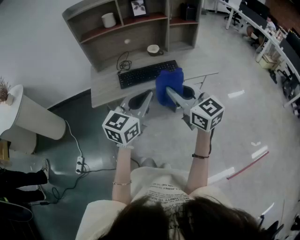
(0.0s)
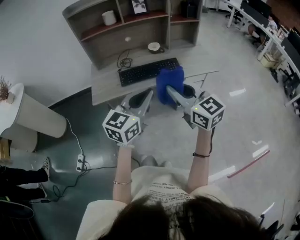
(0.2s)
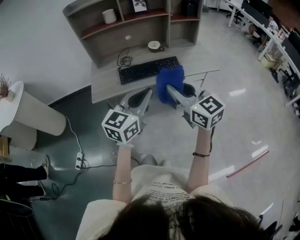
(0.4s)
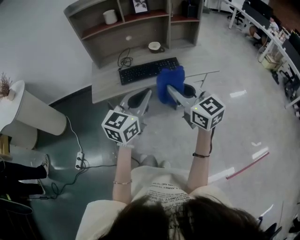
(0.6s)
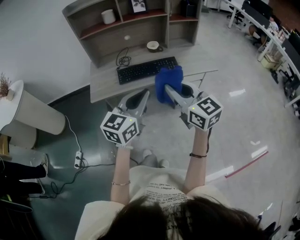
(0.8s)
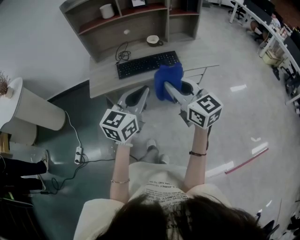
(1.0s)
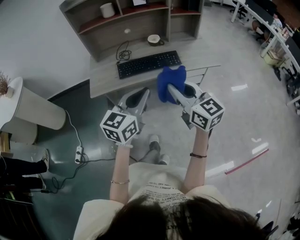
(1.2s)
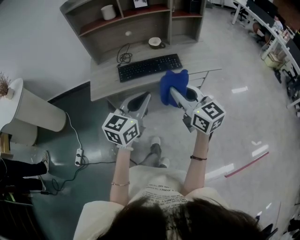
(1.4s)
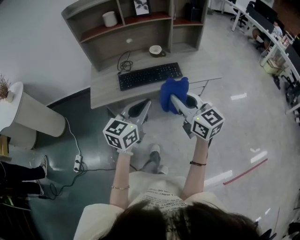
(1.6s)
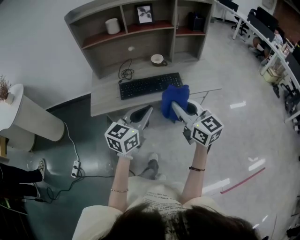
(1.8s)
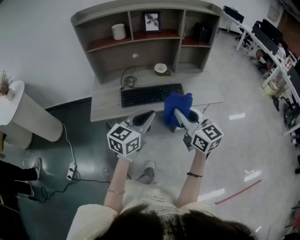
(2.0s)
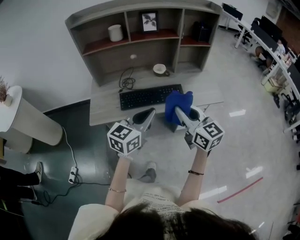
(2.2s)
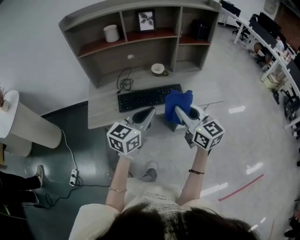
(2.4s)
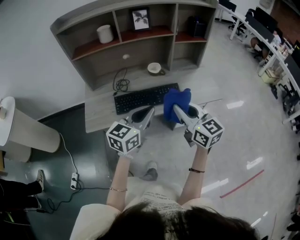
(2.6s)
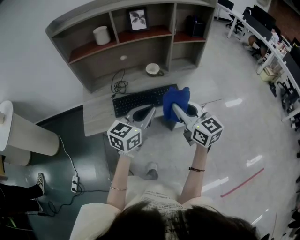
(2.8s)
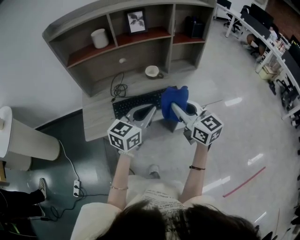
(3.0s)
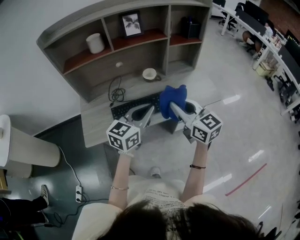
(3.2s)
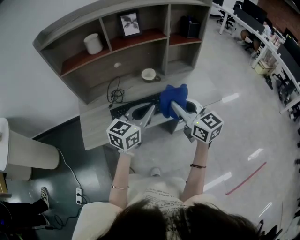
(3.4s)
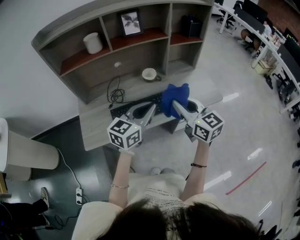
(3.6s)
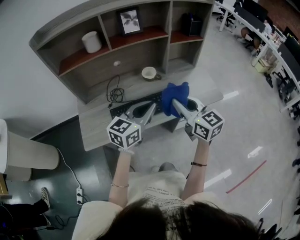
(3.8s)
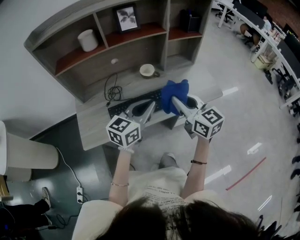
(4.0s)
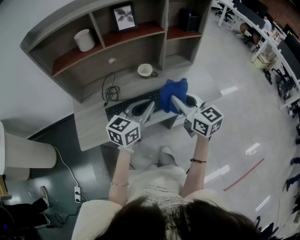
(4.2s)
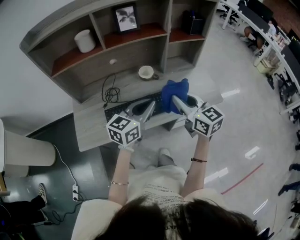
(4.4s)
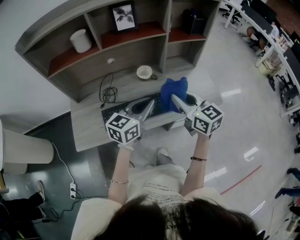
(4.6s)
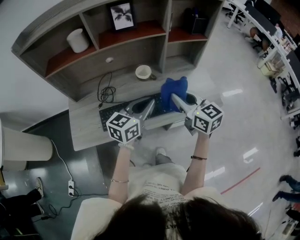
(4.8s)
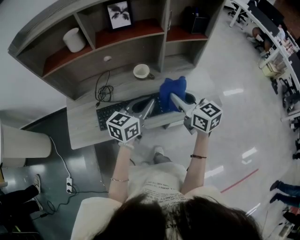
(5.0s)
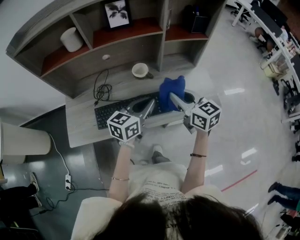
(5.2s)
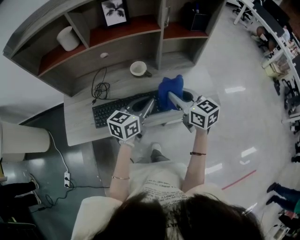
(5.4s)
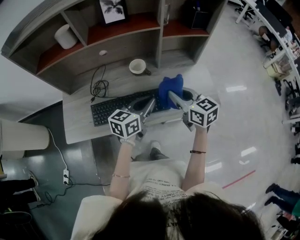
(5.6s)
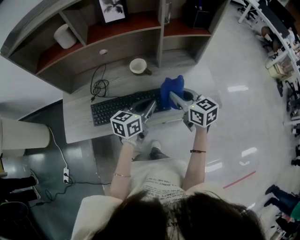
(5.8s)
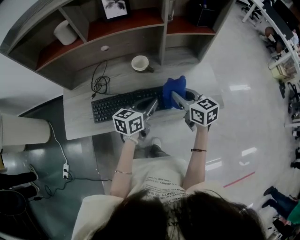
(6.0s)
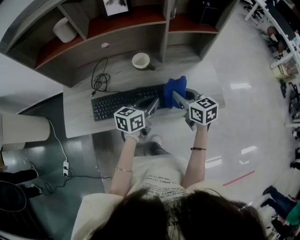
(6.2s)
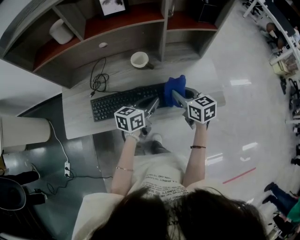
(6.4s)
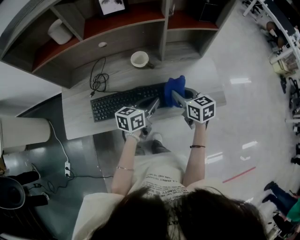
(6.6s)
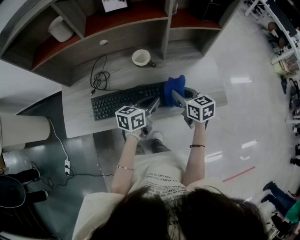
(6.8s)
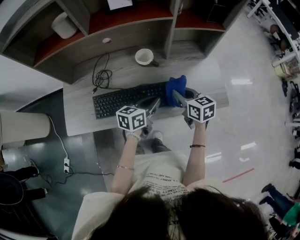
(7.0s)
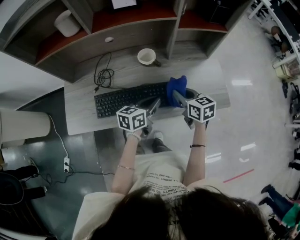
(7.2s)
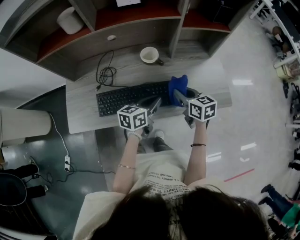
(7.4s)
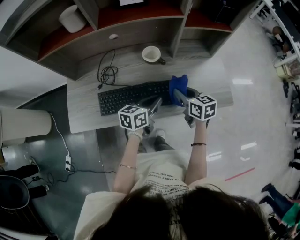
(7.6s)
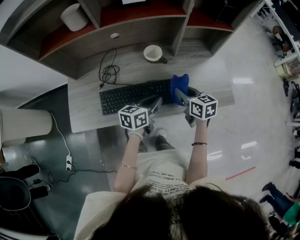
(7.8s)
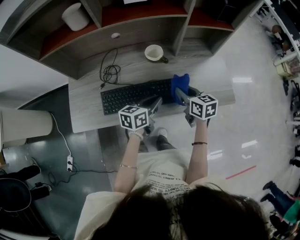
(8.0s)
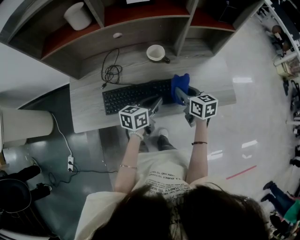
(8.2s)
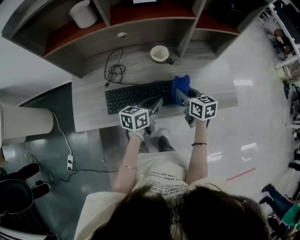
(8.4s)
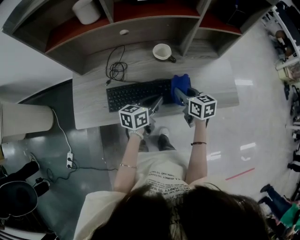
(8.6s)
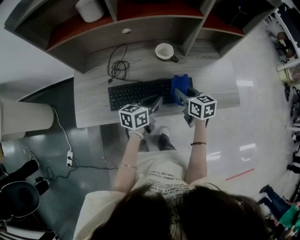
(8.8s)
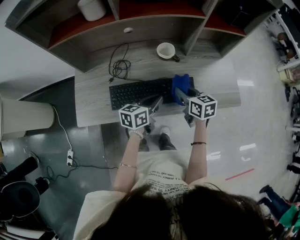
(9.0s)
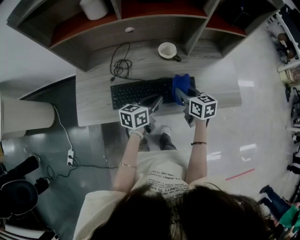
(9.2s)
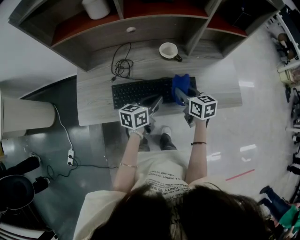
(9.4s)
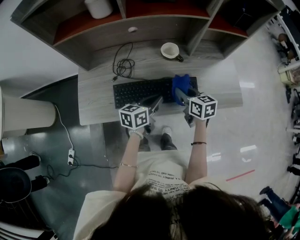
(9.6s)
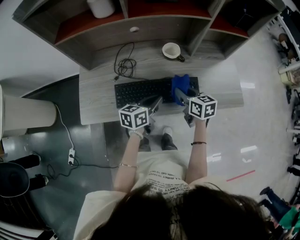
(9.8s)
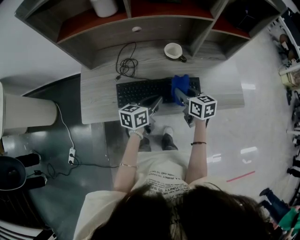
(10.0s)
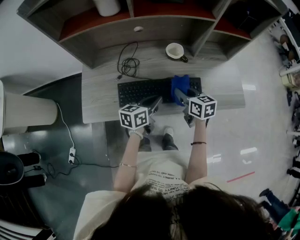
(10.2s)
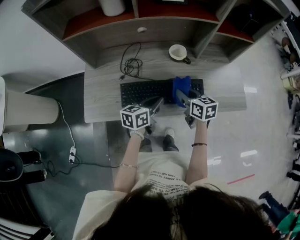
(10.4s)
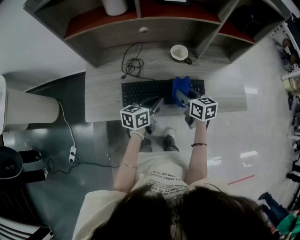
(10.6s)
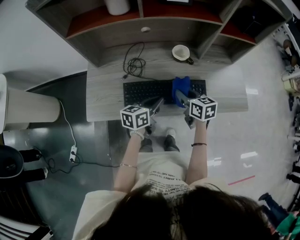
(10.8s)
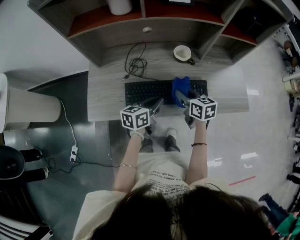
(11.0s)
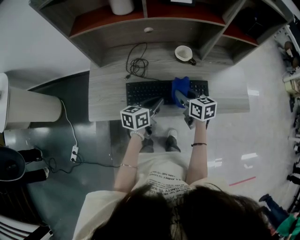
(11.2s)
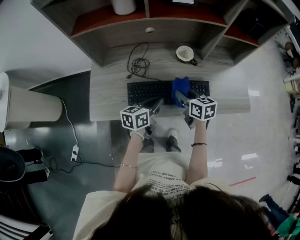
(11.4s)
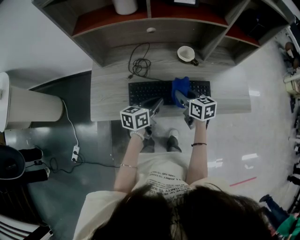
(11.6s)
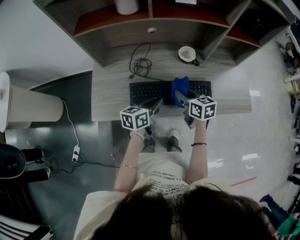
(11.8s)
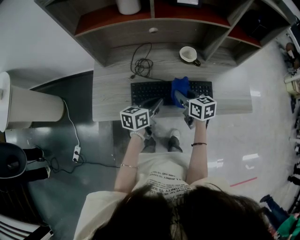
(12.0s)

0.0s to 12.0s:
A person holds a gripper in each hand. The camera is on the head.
0.0s to 1.6s: The right gripper ends up about 5 cm from where it was.
1.6s to 3.0s: The grippers both shift forward by approximately 20 cm.
3.0s to 4.4s: Both grippers move forward, about 10 cm.
4.4s to 6.0s: The left gripper shifts some 15 cm downward, to the right and forward, and rotates some 20 degrees. The right gripper heads downward, forward and to the right, covering roughly 15 cm.
6.0s to 7.6s: Both grippers travel together downward, about 5 cm.
7.6s to 9.0s: Both grippers move to the left, about 5 cm.
9.0s to 10.4s: The grippers make only small movements.
10.4s to 12.0s: Both grippers move to the left, roughly 5 cm.

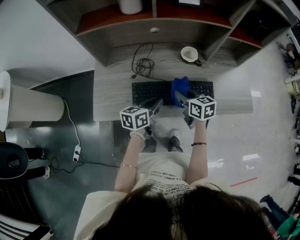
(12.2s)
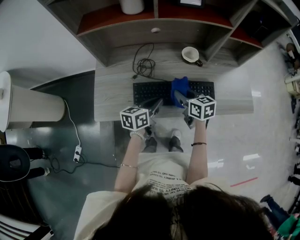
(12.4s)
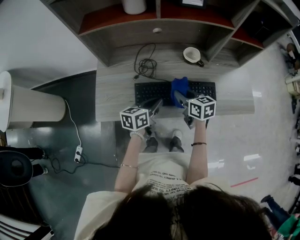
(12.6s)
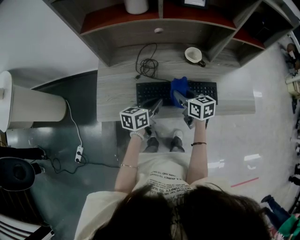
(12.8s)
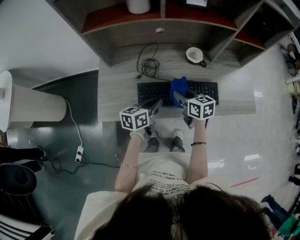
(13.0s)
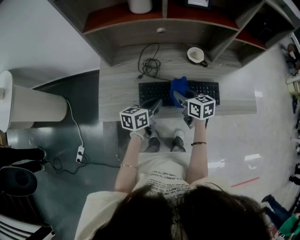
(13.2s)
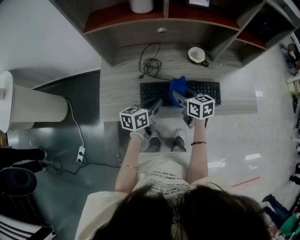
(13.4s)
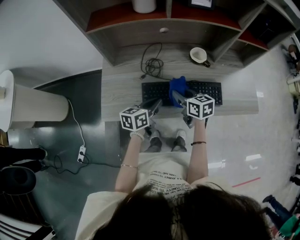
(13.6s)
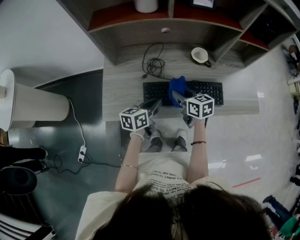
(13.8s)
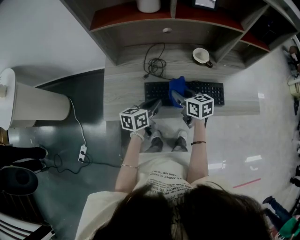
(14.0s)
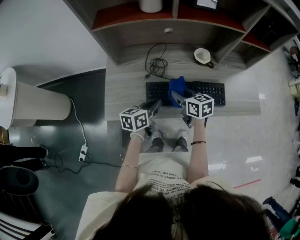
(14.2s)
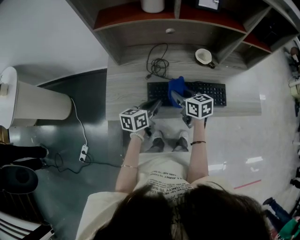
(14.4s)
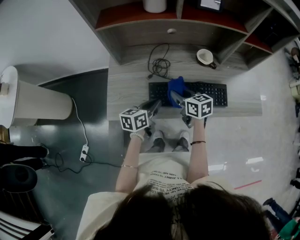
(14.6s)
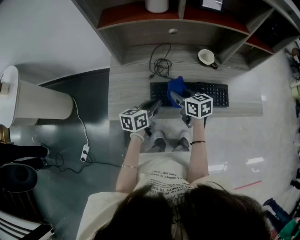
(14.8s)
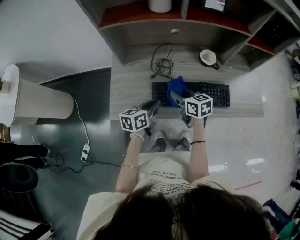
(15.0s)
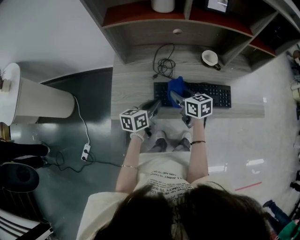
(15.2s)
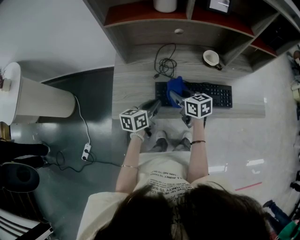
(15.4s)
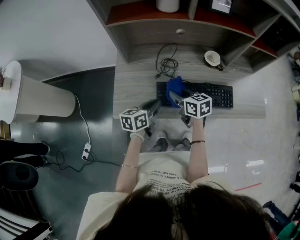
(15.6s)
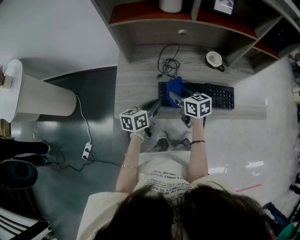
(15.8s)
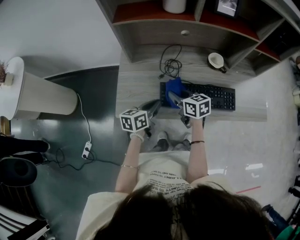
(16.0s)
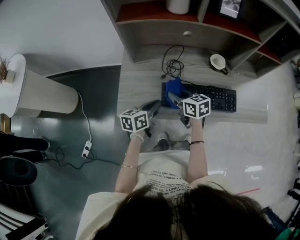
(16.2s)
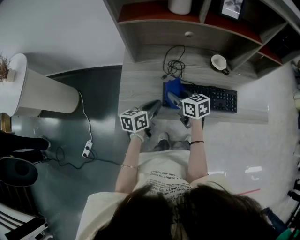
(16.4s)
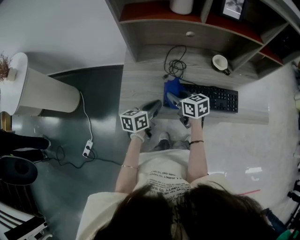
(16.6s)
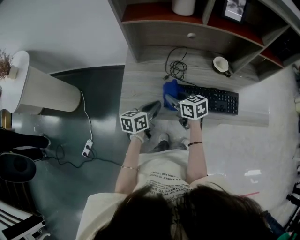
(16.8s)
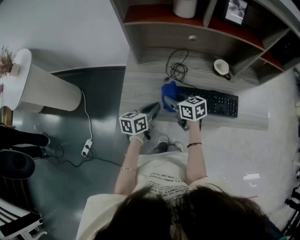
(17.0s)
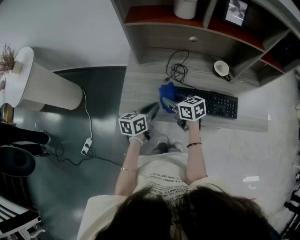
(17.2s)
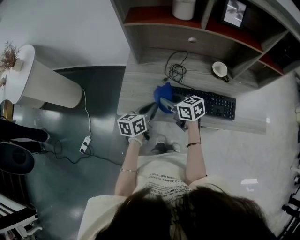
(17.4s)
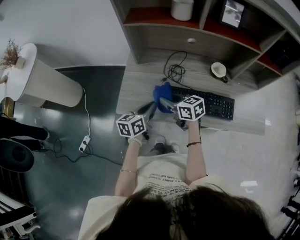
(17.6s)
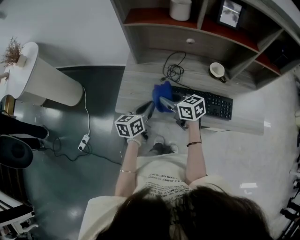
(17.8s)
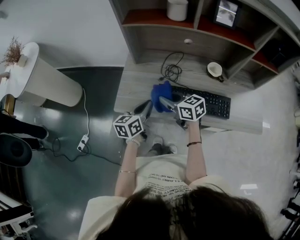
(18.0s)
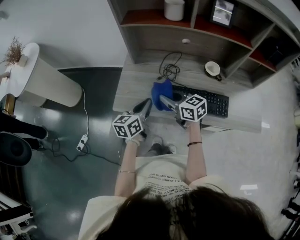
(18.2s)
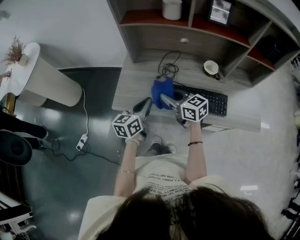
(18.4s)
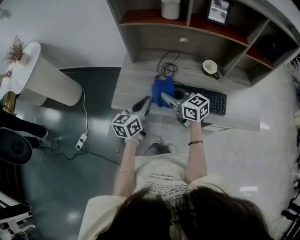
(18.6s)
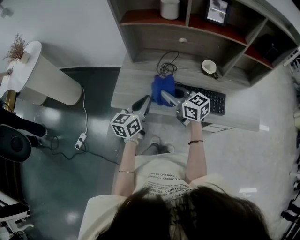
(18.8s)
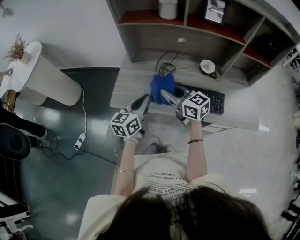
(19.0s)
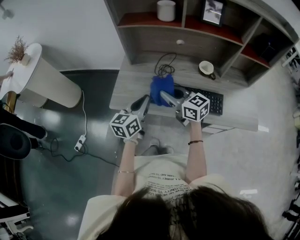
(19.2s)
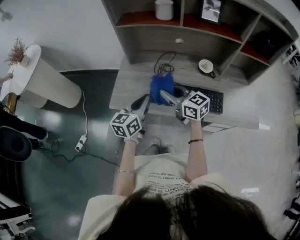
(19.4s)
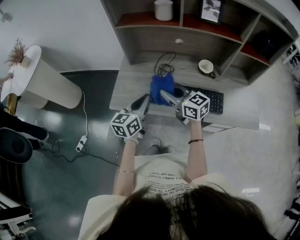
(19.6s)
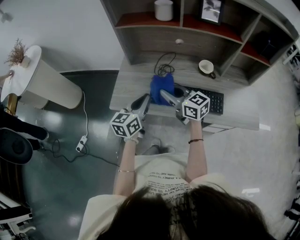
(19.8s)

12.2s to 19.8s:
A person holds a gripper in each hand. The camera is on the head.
12.2s to 13.8s: The grippers both shift to the left by some 5 cm.
13.8s to 15.2s: The grippers both shift to the left by some 5 cm.
15.2s to 16.8s: Both grippers move to the left, about 5 cm.
16.8s to 18.2s: The grippers both shift upward by roughly 5 cm.
18.2s to 19.8s: The left gripper moves approximately 5 cm. The right gripper moves roughly 5 cm.

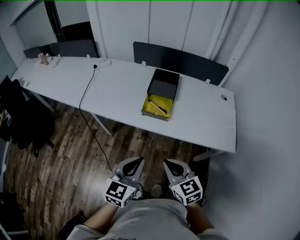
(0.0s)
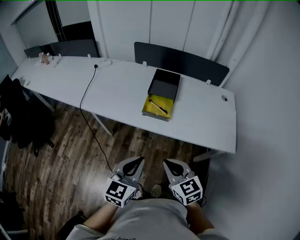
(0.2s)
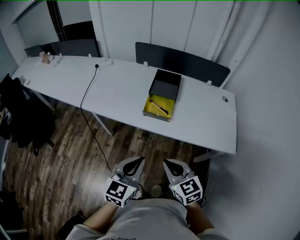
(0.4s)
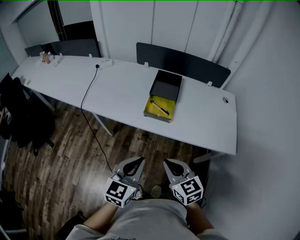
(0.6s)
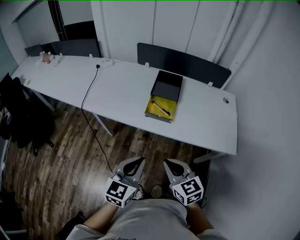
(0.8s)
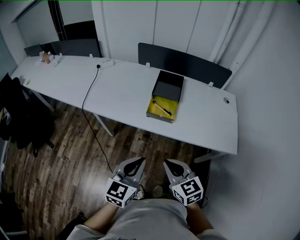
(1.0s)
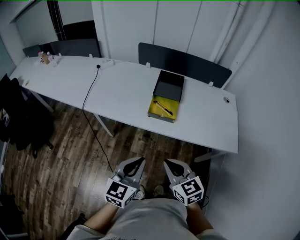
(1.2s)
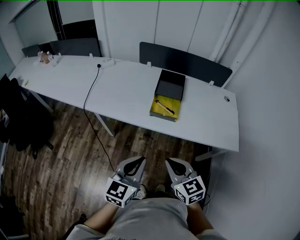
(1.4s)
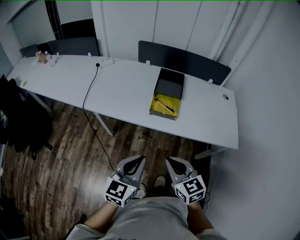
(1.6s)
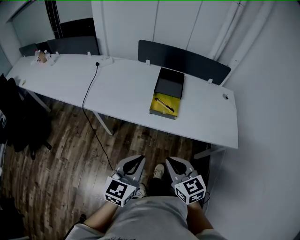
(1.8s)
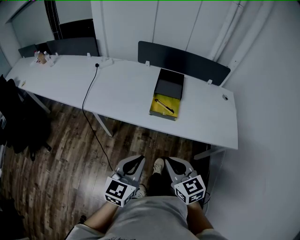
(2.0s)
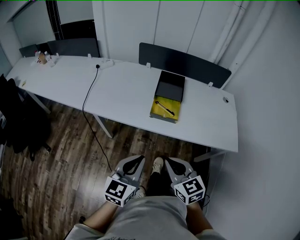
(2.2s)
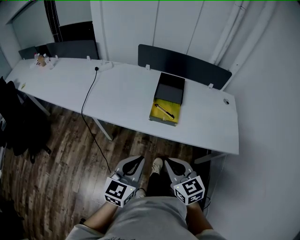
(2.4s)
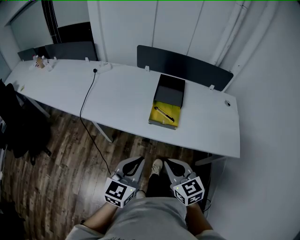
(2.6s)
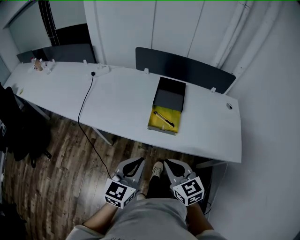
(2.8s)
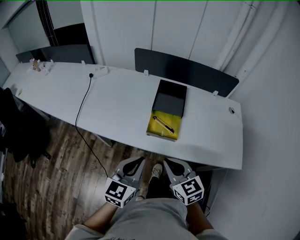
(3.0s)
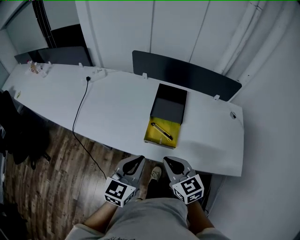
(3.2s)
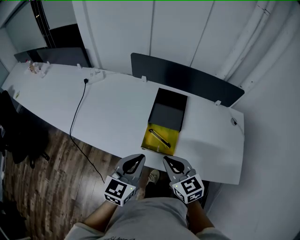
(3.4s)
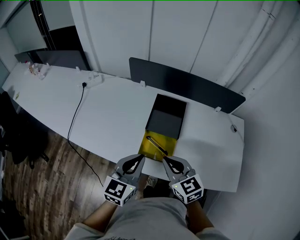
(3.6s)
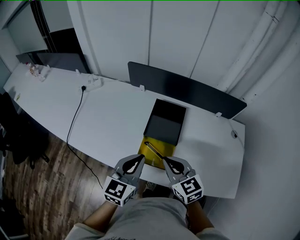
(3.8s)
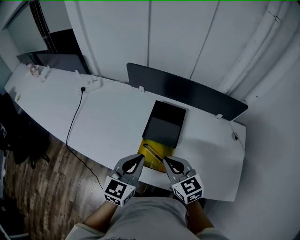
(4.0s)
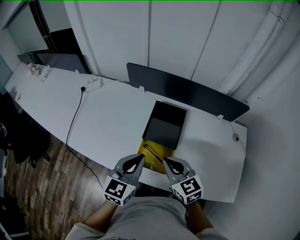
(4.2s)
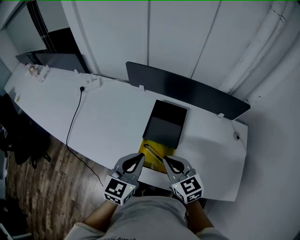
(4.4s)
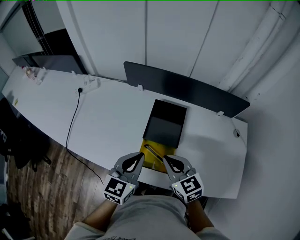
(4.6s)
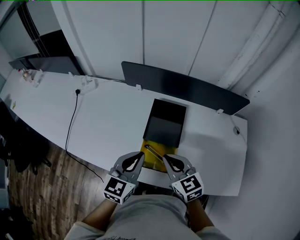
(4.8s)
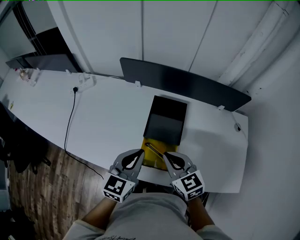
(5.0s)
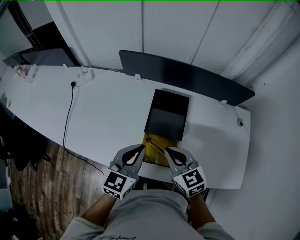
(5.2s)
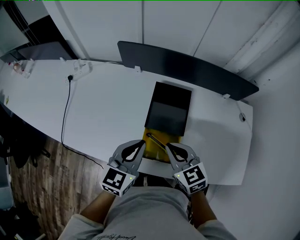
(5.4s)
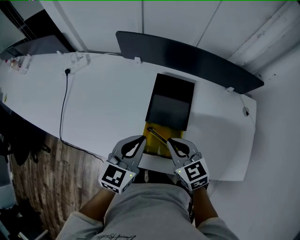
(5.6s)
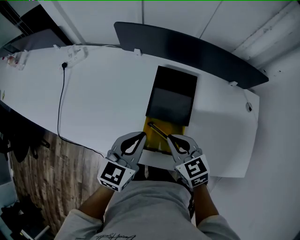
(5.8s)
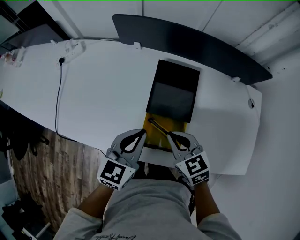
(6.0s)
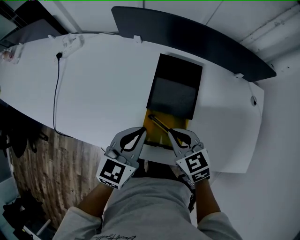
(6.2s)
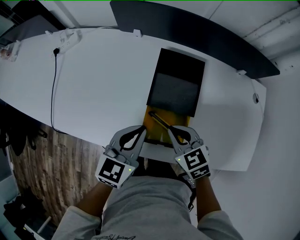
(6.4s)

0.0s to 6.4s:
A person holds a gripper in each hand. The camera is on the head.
0.0s to 1.6s: The grippers both shift to the left by roughly 5 cm.
1.6s to 3.2s: Both grippers travel together forward, approximately 20 cm.
3.2s to 4.8s: The two grippers go some 15 cm forward.
4.8s to 6.4s: The grippers both shift downward by some 10 cm.
